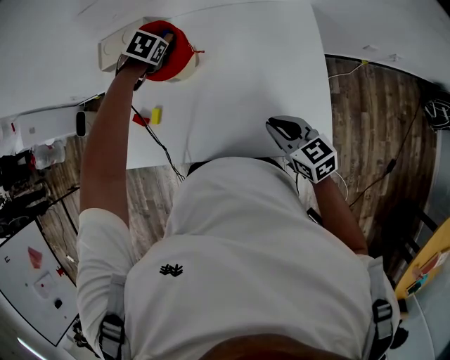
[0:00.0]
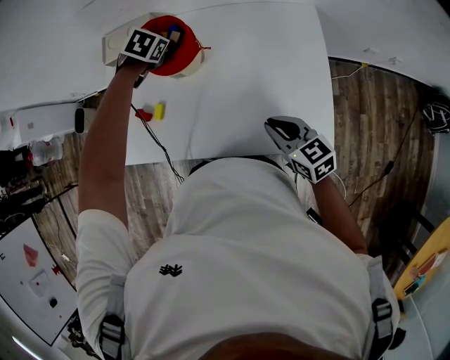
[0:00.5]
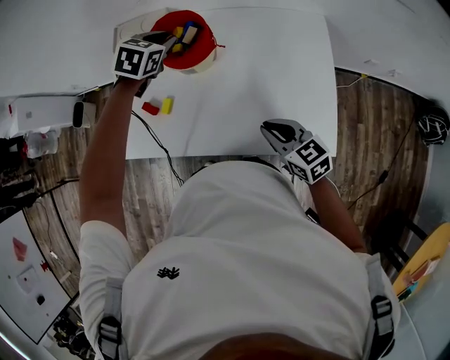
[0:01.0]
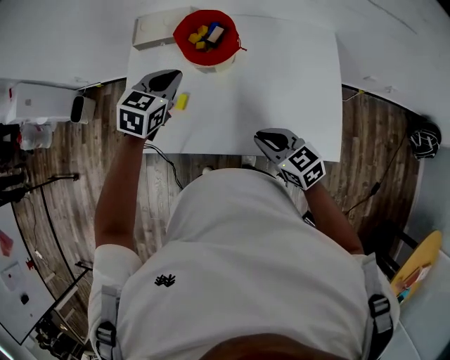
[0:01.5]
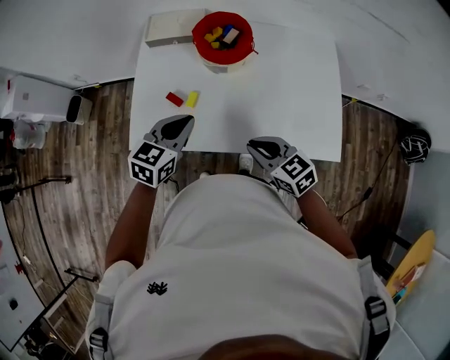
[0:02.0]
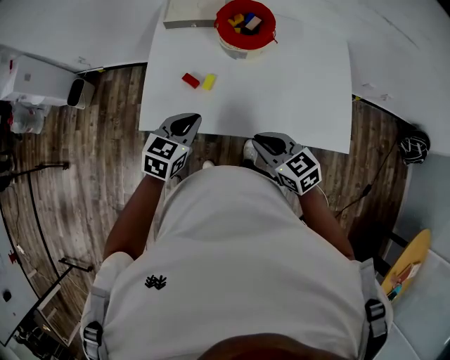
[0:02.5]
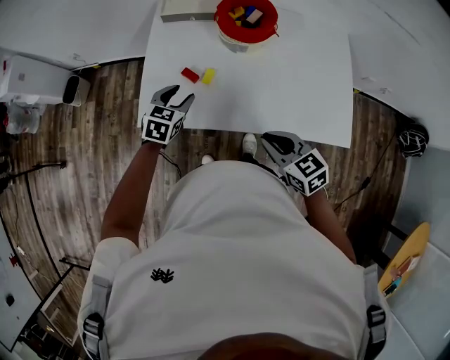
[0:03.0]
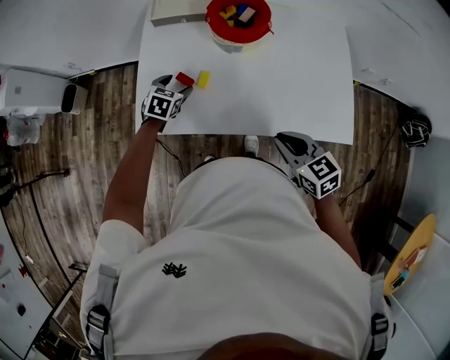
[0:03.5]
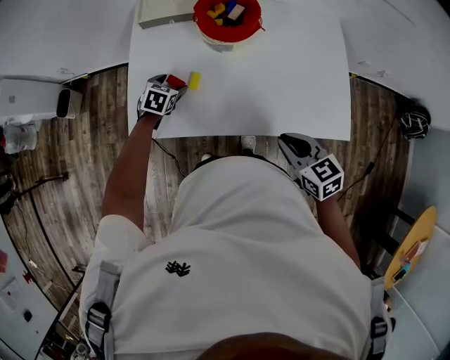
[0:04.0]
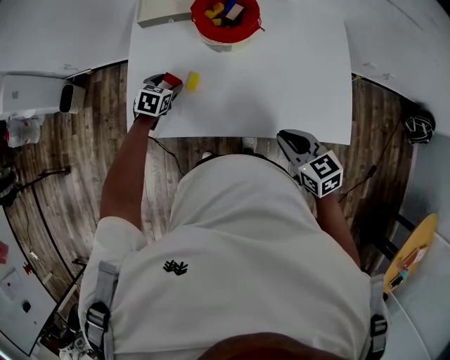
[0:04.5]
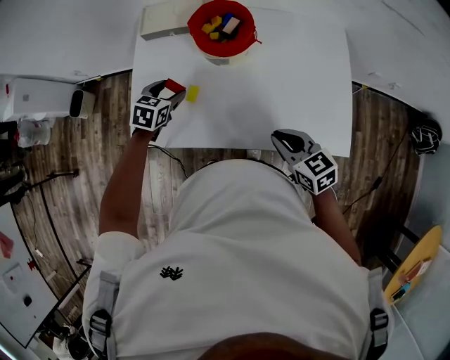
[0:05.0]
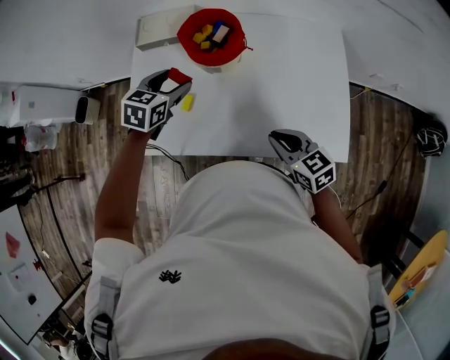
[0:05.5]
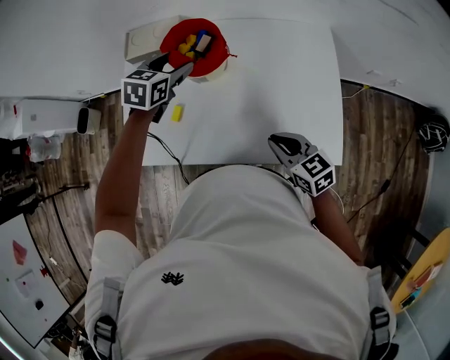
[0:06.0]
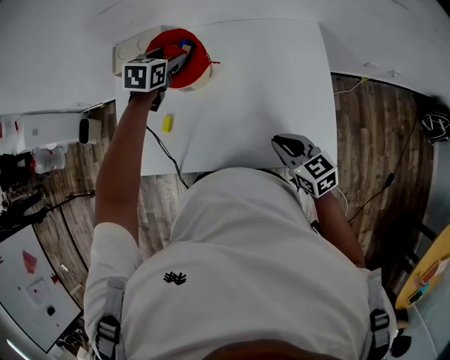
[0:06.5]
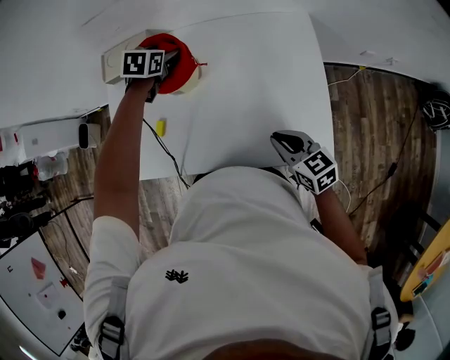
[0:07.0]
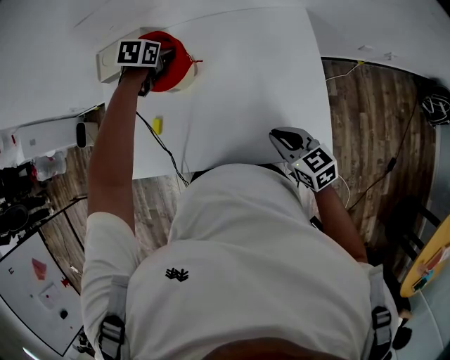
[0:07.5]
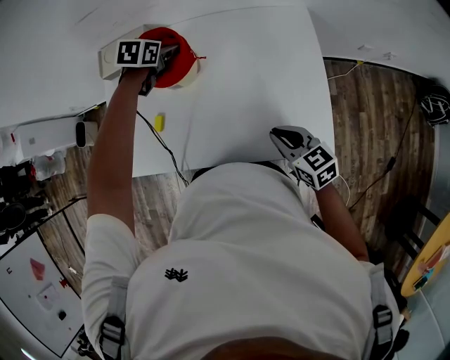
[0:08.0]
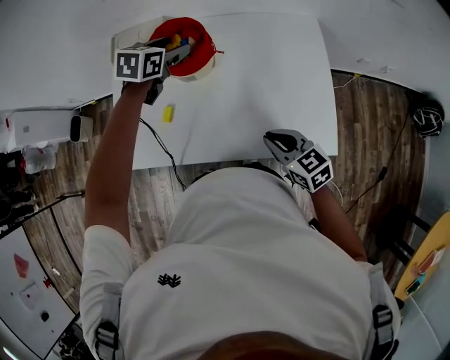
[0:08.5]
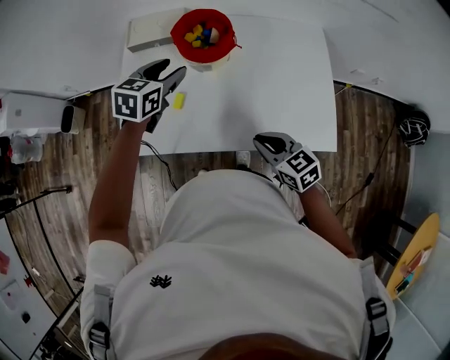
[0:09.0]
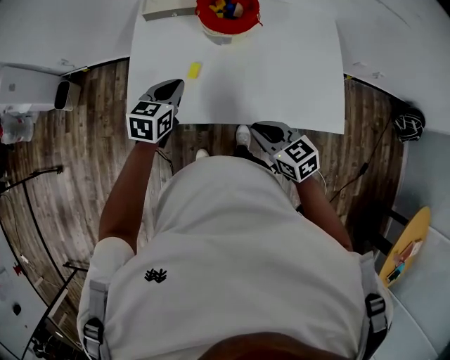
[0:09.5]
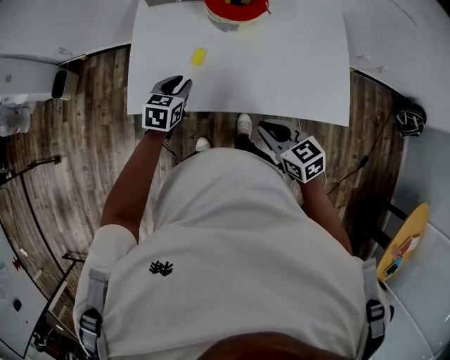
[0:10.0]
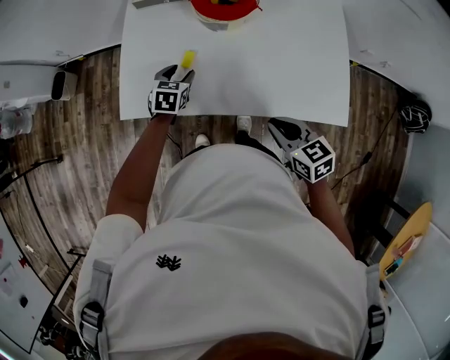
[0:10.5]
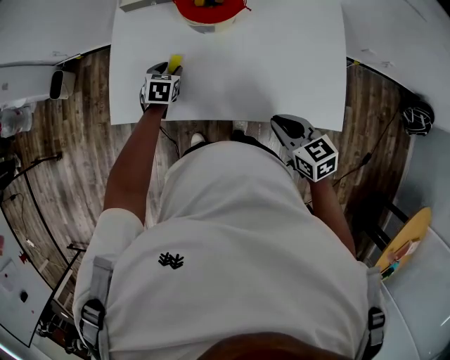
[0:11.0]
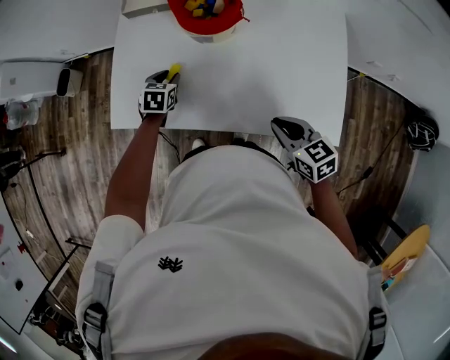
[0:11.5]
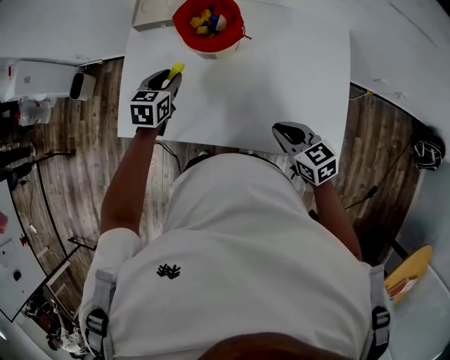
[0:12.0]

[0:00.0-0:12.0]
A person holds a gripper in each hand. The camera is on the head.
0:00.0 to 0:02.0: The right gripper moves to the left, some 20 cm, while the left gripper moves backward and to the left, about 30 cm, angles its fingers upward, by roughly 40 degrees, and closes its fingers.
0:02.0 to 0:04.0: The left gripper moves downward and forward, roughly 25 cm, changes its angle by some 30 degrees, and opens. Meanwhile the right gripper ends up roughly 5 cm from where it was.
0:04.0 to 0:06.0: The right gripper moves to the right and forward, approximately 10 cm. Meanwhile the left gripper is displaced upward, to the right and forward by approximately 30 cm.
0:06.0 to 0:08.0: The right gripper moves to the right, about 5 cm; the left gripper moves forward, downward and to the right, roughly 15 cm.
0:08.0 to 0:10.0: The left gripper travels backward and to the left by about 35 cm, and closes its fingers; the right gripper moves to the left and backward, about 20 cm.
0:10.0 to 0:12.0: The right gripper heads to the right and forward, covering some 20 cm; the left gripper heads forward and to the right, covering approximately 15 cm, and goes downward and returns, approximately 10 cm each way.

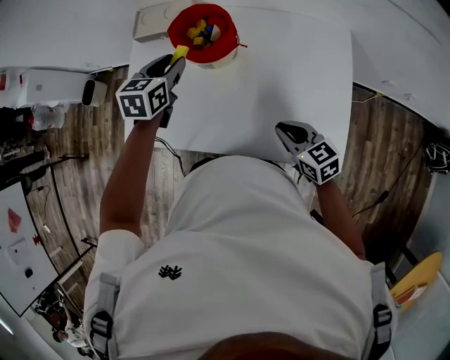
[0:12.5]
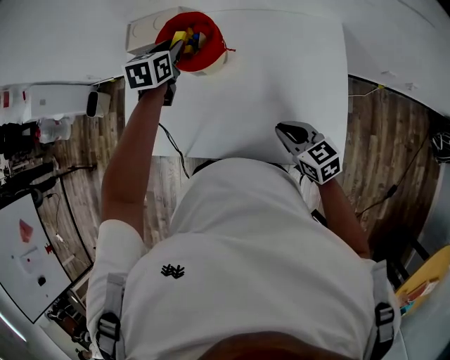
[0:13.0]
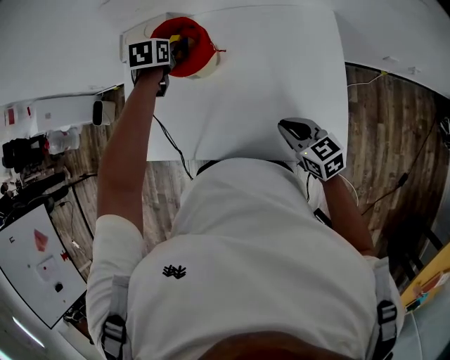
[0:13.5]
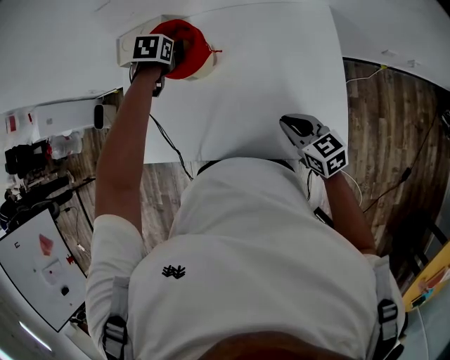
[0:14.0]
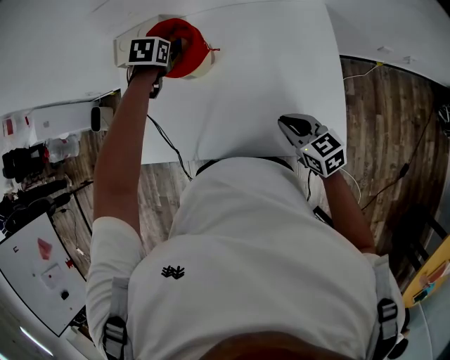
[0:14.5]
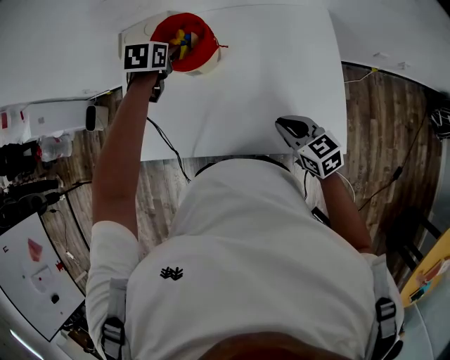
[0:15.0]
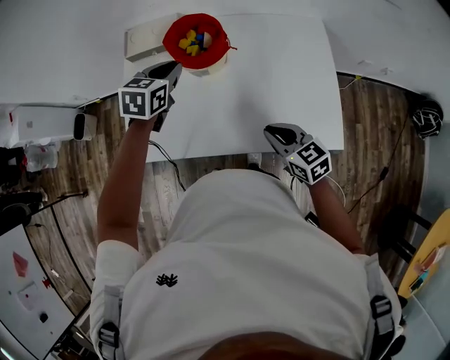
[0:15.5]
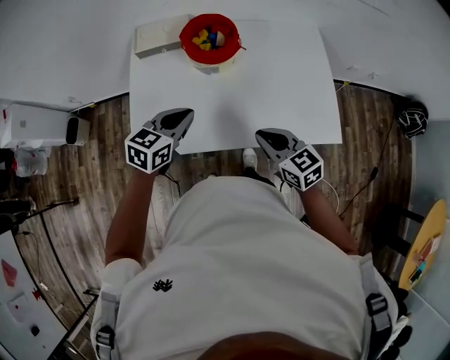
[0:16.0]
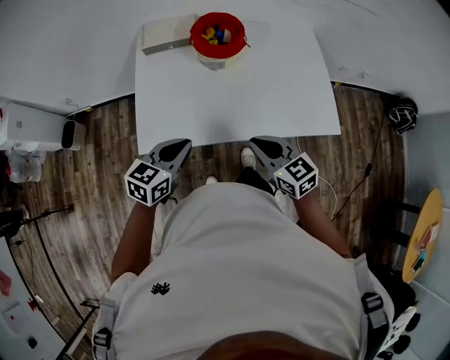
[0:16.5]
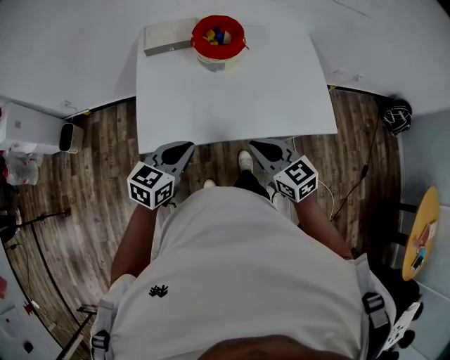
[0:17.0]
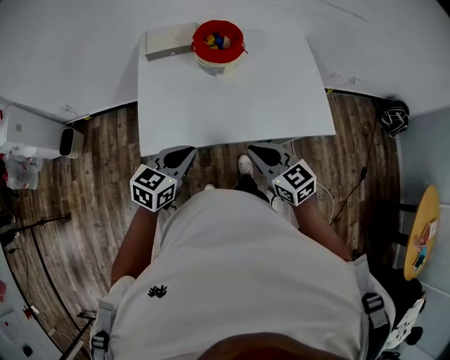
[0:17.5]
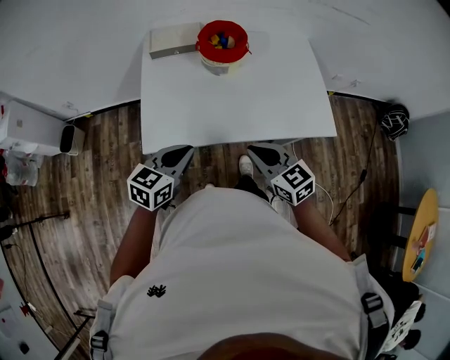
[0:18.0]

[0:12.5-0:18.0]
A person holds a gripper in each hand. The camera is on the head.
0:12.5 to 0:14.5: The left gripper travels forward, downward and to the right by some 10 cm, and angles its fingers downward, by about 30 degrees.
0:14.5 to 0:16.0: The right gripper moves some 20 cm, while the left gripper changes place by approximately 30 cm, angles its fingers upward, by roughly 40 degrees, and closes.
0:16.0 to 0:18.0: The two grippers go roughly 15 cm backward and to the left.

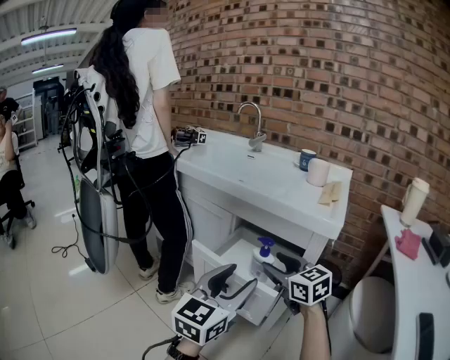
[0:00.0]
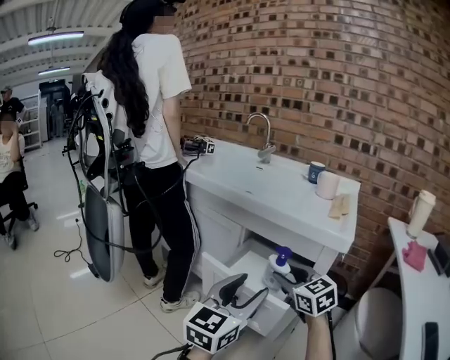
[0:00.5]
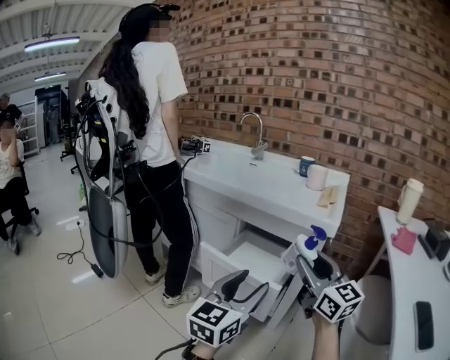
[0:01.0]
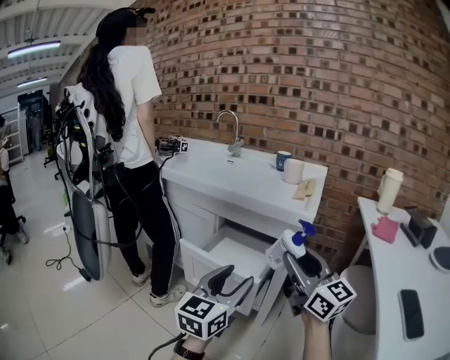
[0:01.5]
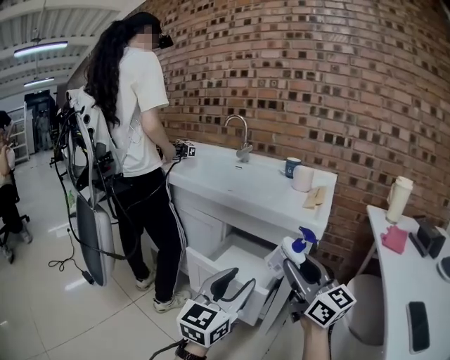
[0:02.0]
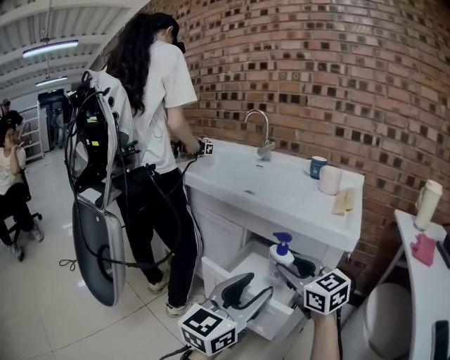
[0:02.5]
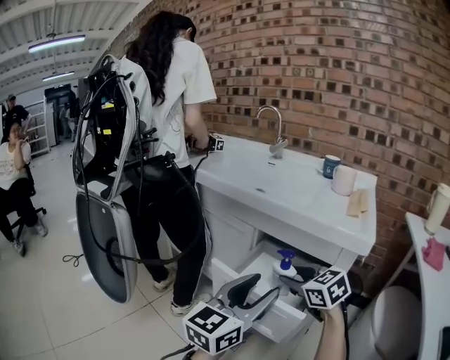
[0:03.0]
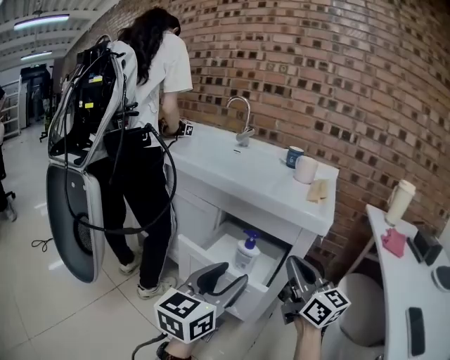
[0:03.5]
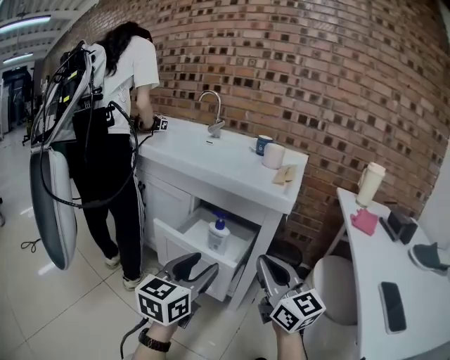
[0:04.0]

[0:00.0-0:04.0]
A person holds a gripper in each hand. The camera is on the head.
0:00.0 to 0:02.0: The right gripper goes some 15 cm upward, backward and to the right, and tilts its fingers approximately 30 degrees upward.
0:02.0 to 0:04.0: The right gripper moves about 15 cm forward and comes back, and closes its fingers.

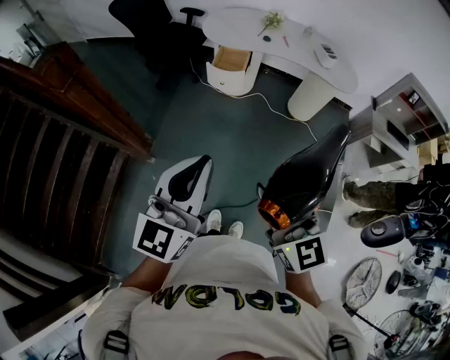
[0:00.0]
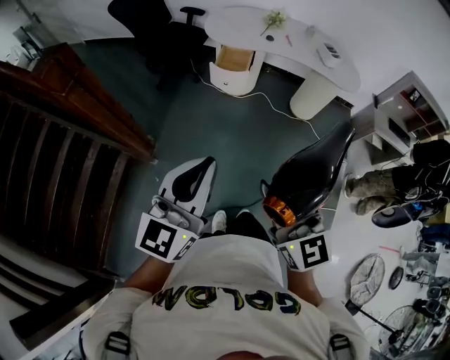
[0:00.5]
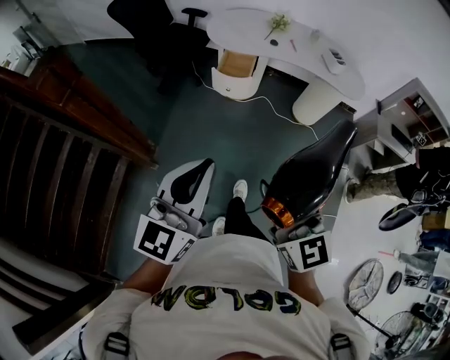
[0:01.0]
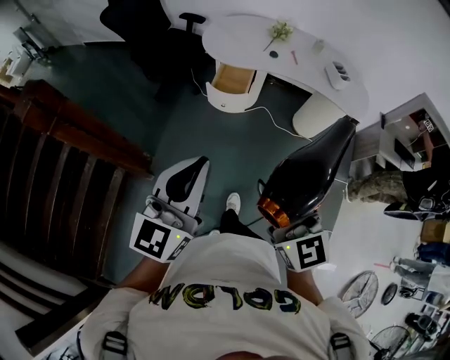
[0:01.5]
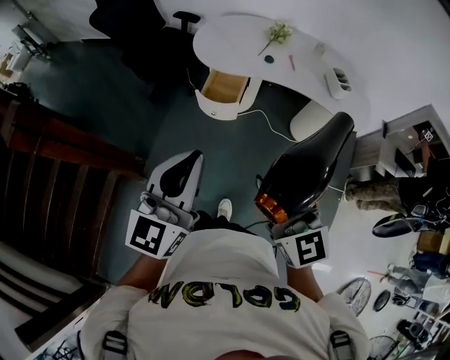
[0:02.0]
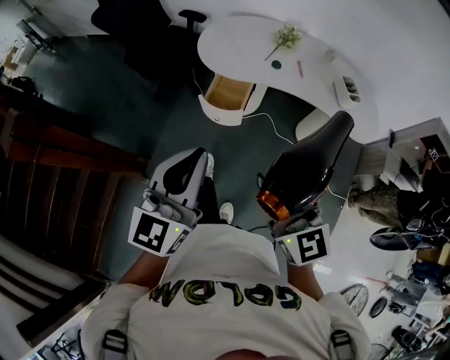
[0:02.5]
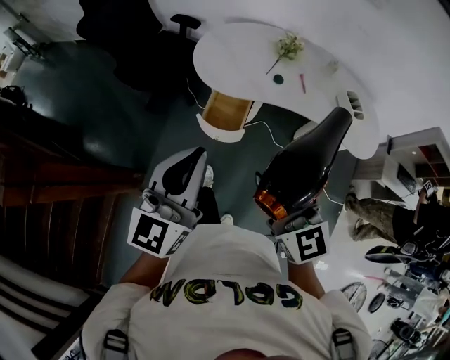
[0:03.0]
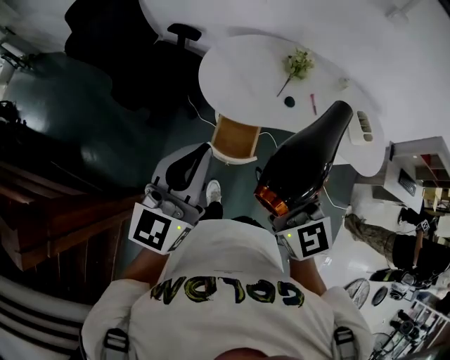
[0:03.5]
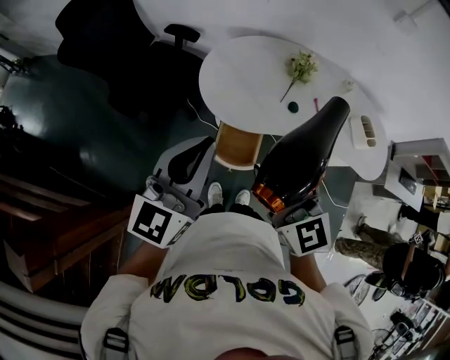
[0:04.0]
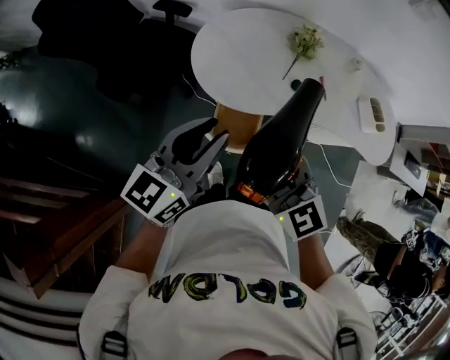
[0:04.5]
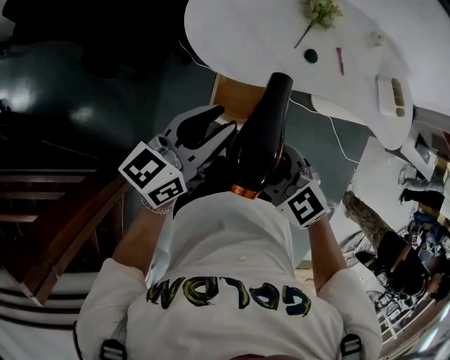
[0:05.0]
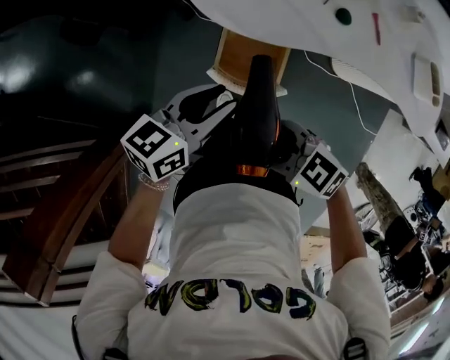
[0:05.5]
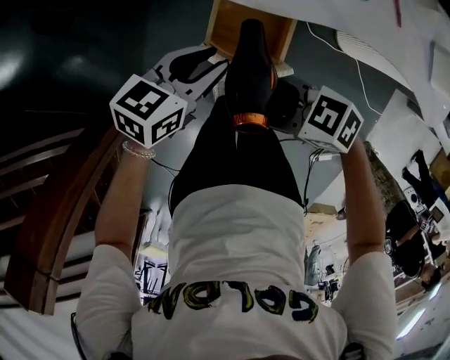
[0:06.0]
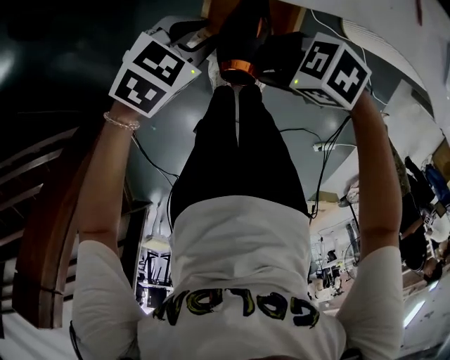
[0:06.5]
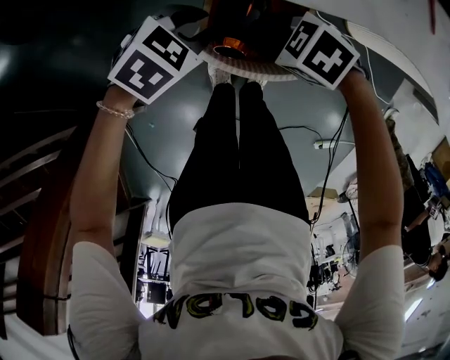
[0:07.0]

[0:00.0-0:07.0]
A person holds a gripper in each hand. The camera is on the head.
0:00.0 to 0:02.0: Both grippers move forward, roughly 30 cm.
0:02.0 to 0:03.5: The two grippers go approximately 35 cm forward.
0:03.5 to 0:05.0: The right gripper shifts some 25 cm downward, and points its fingers approximately 30 degrees further downward. Meanwhile the left gripper shifts about 20 cm downward and forward, turns by roughly 40 degrees, and opens its fingers.
0:05.0 to 0:07.0: The grippers both shift downward by some 35 cm. The left gripper tips its fingers downward by about 50 degrees; the right gripper changes its angle by some 40 degrees.
